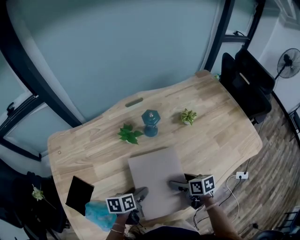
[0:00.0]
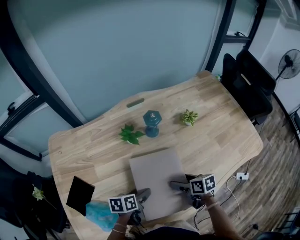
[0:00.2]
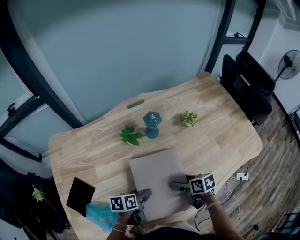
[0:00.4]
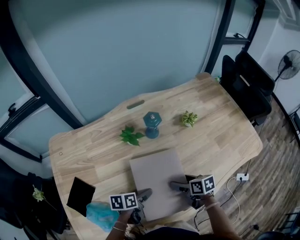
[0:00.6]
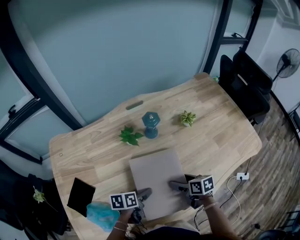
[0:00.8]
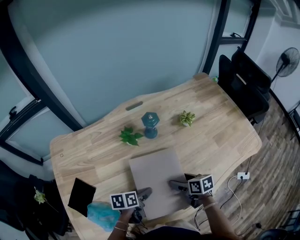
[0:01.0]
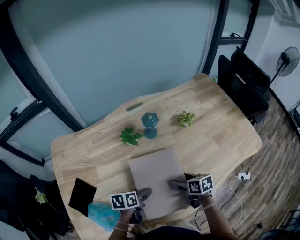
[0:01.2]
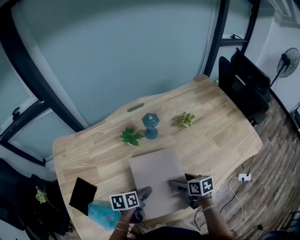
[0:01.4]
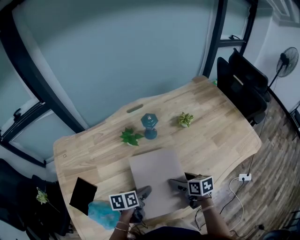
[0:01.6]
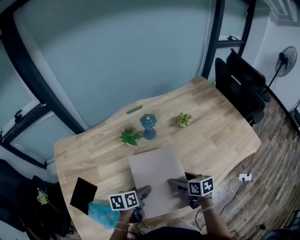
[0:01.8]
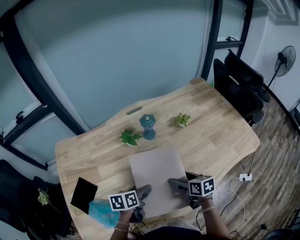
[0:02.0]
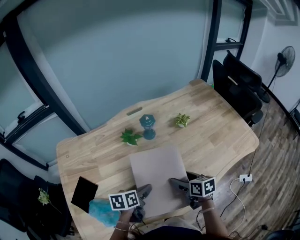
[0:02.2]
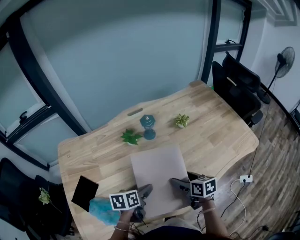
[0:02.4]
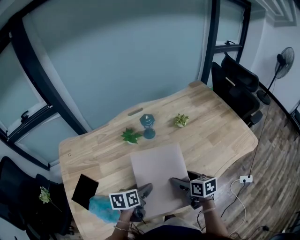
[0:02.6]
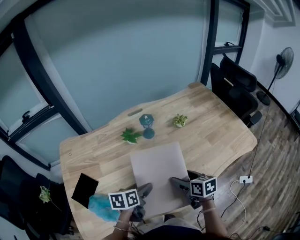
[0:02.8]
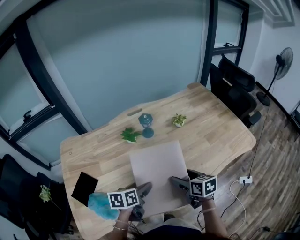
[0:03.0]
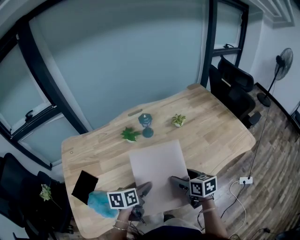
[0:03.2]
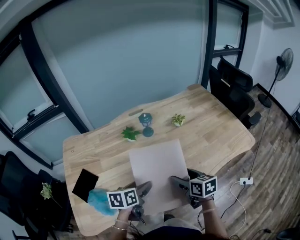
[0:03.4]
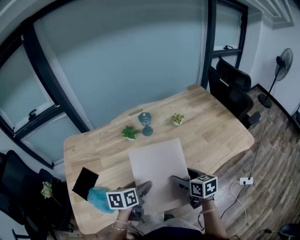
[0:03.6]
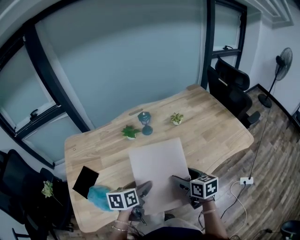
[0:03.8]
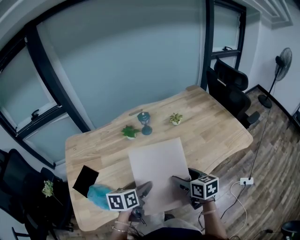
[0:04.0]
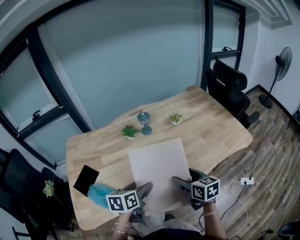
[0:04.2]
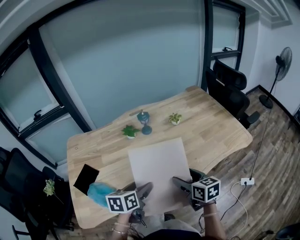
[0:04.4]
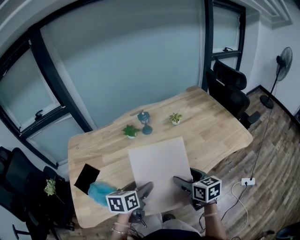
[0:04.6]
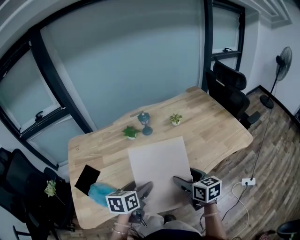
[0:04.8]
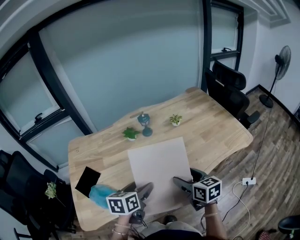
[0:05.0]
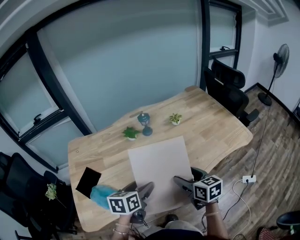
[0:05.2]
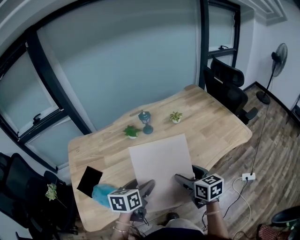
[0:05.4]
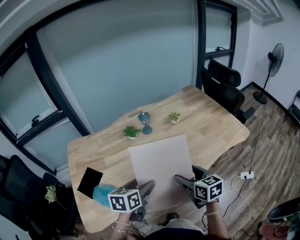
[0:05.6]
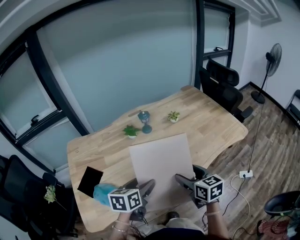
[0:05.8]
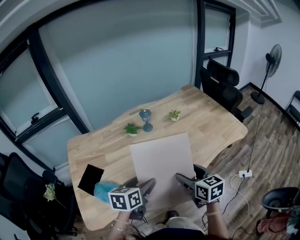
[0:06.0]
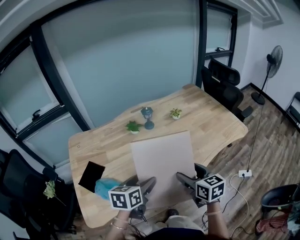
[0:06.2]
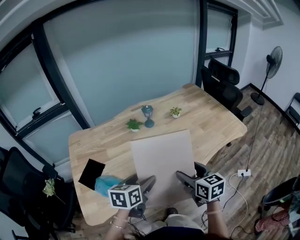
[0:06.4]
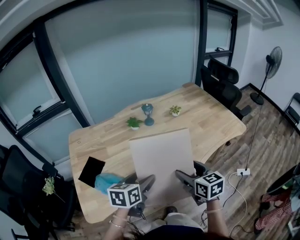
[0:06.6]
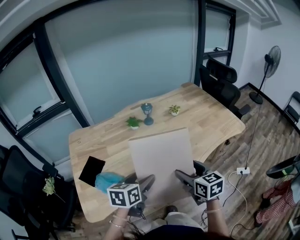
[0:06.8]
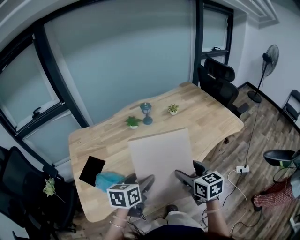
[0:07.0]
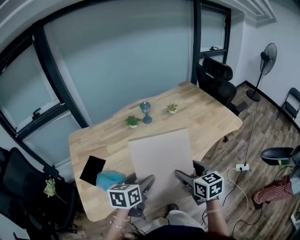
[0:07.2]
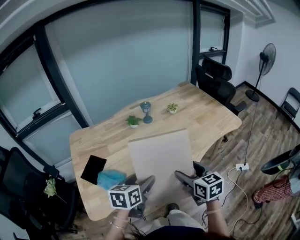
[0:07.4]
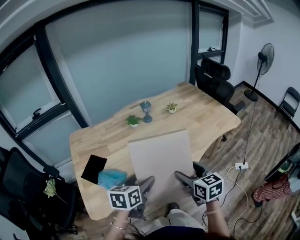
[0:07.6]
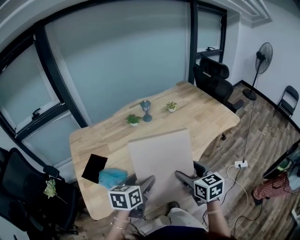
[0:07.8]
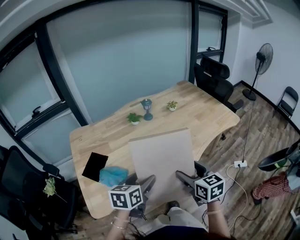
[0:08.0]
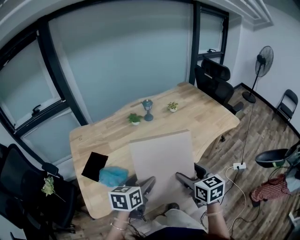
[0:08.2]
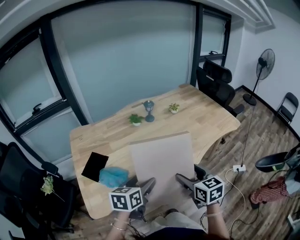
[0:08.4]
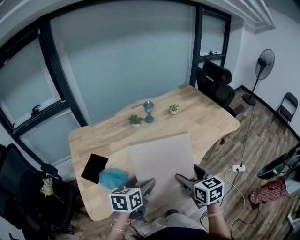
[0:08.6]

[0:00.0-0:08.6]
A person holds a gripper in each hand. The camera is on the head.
0:00.0 to 0:01.4: The grippers make only small movements.
0:01.4 to 0:02.8: The grippers both shift upward by some 10 cm.
0:02.8 to 0:04.4: Both grippers move backward and upward, approximately 10 cm.
0:04.4 to 0:05.8: The right gripper moves some 5 cm.
0:05.8 to 0:07.2: Both grippers travel together backward, some 10 cm.
0:07.2 to 0:08.6: The right gripper moves approximately 5 cm.

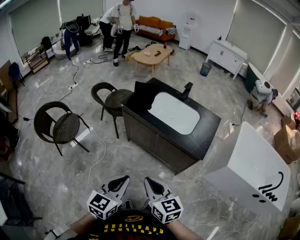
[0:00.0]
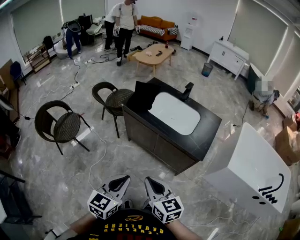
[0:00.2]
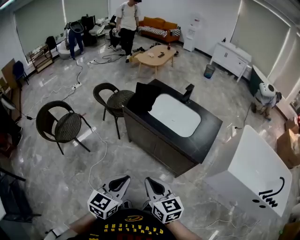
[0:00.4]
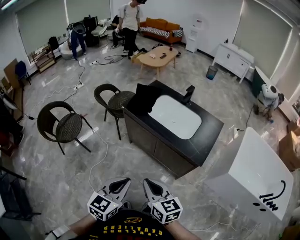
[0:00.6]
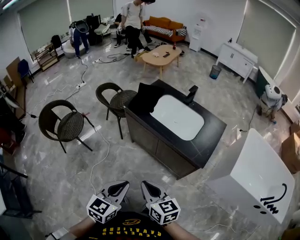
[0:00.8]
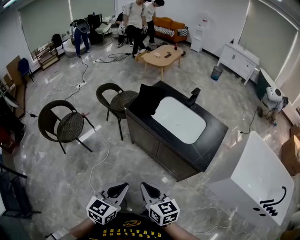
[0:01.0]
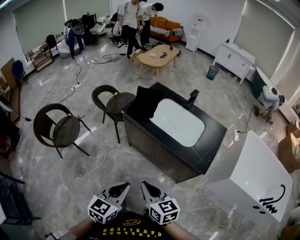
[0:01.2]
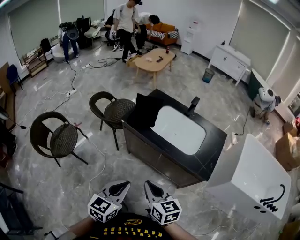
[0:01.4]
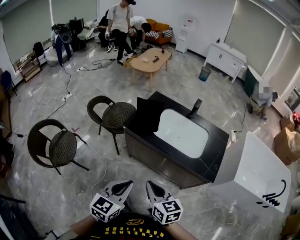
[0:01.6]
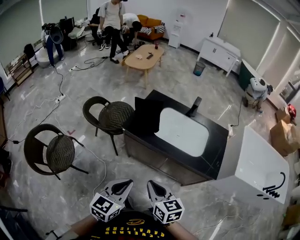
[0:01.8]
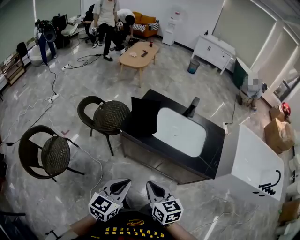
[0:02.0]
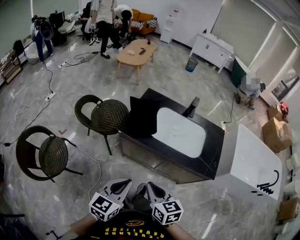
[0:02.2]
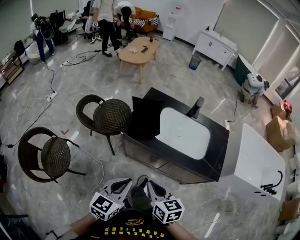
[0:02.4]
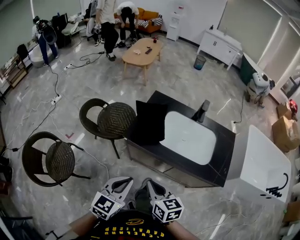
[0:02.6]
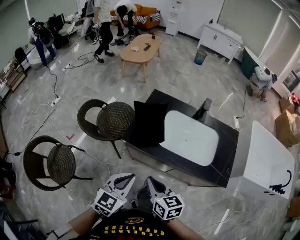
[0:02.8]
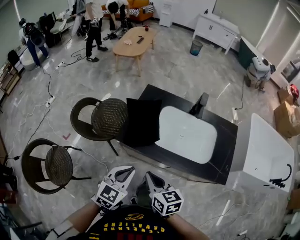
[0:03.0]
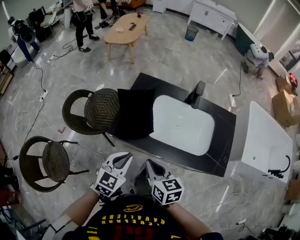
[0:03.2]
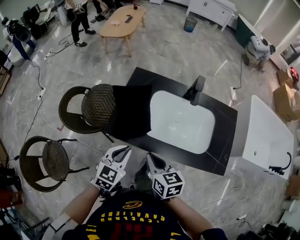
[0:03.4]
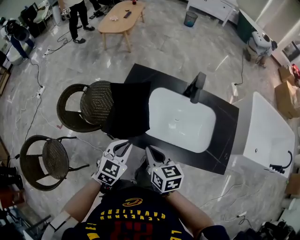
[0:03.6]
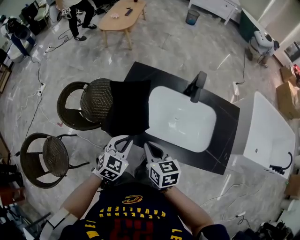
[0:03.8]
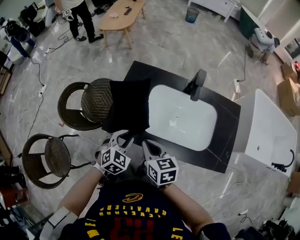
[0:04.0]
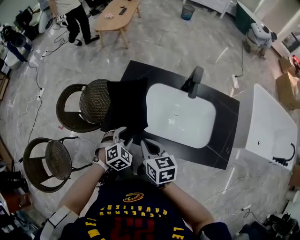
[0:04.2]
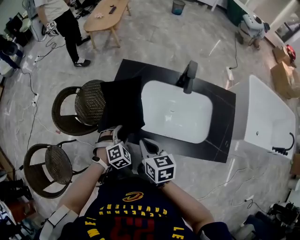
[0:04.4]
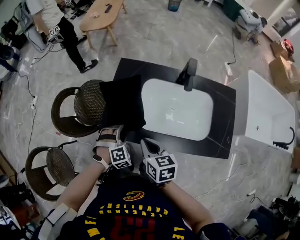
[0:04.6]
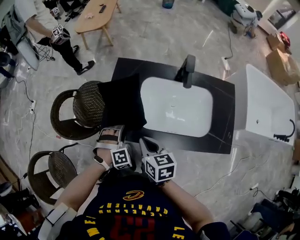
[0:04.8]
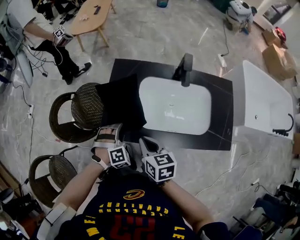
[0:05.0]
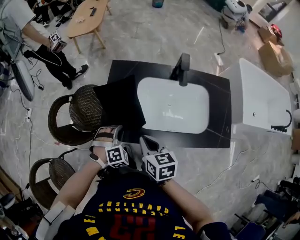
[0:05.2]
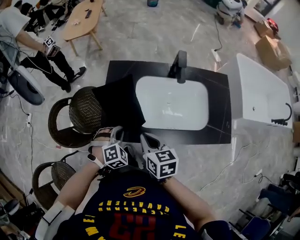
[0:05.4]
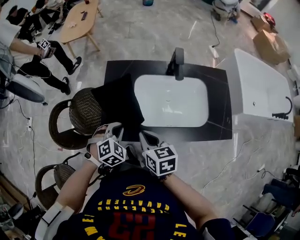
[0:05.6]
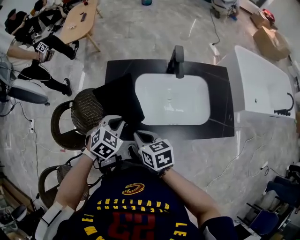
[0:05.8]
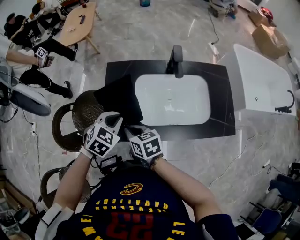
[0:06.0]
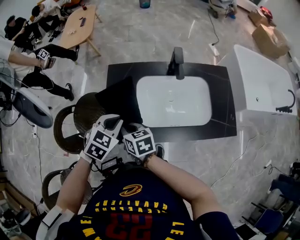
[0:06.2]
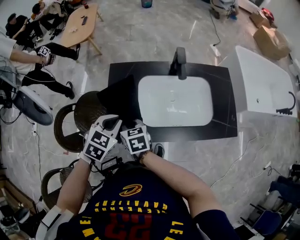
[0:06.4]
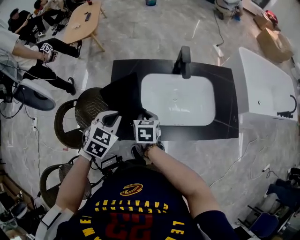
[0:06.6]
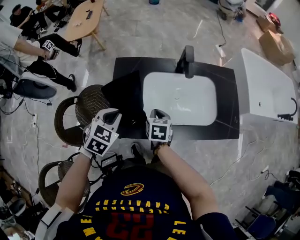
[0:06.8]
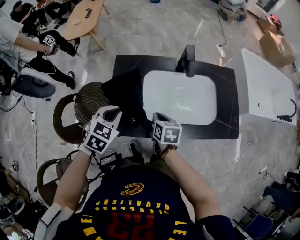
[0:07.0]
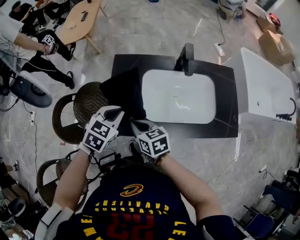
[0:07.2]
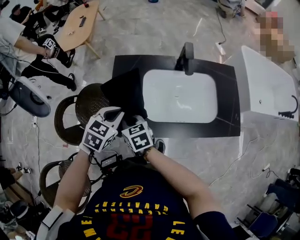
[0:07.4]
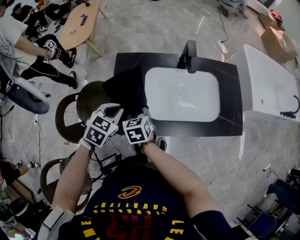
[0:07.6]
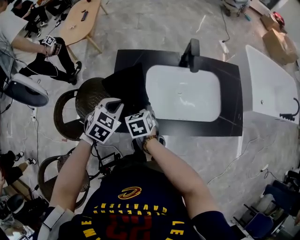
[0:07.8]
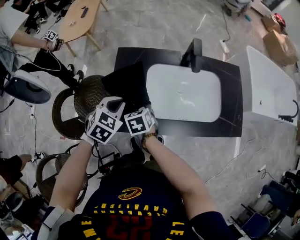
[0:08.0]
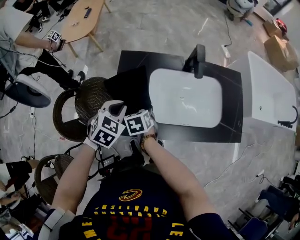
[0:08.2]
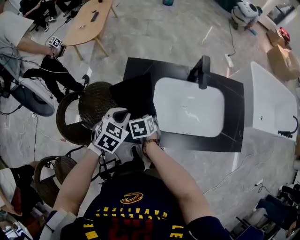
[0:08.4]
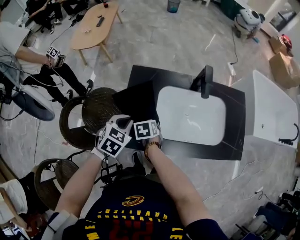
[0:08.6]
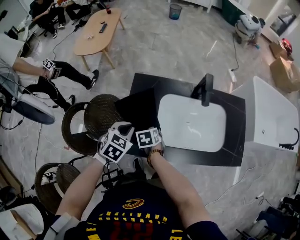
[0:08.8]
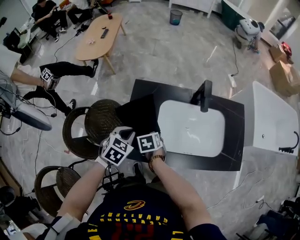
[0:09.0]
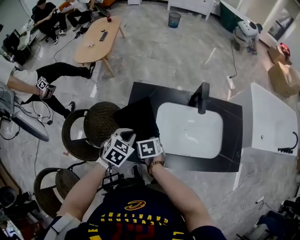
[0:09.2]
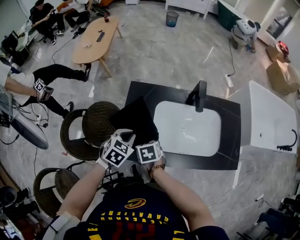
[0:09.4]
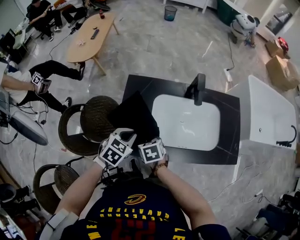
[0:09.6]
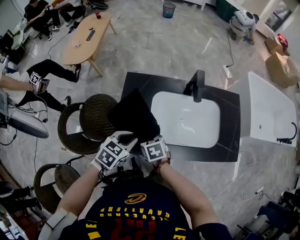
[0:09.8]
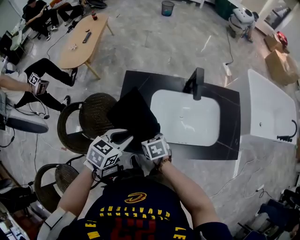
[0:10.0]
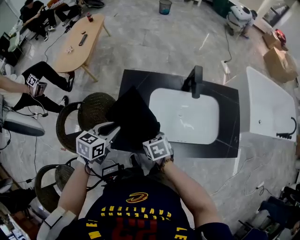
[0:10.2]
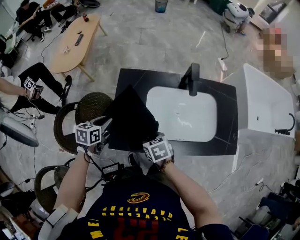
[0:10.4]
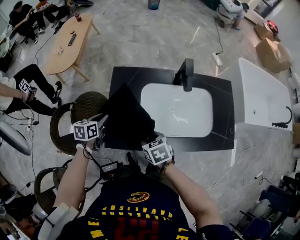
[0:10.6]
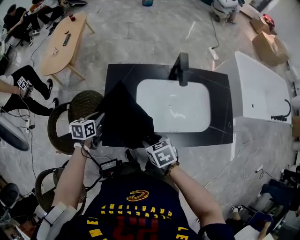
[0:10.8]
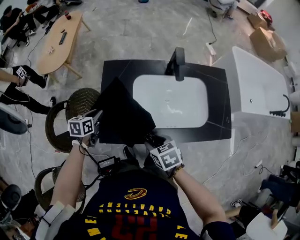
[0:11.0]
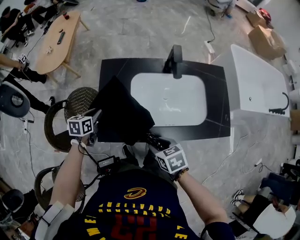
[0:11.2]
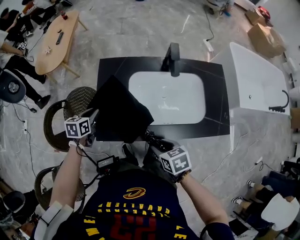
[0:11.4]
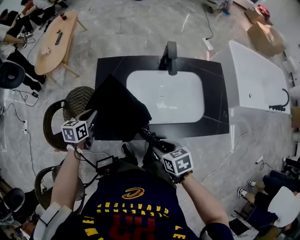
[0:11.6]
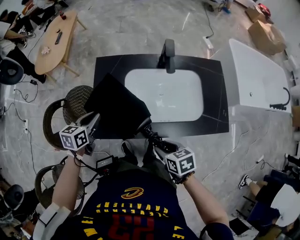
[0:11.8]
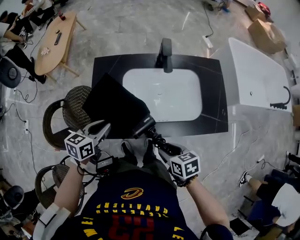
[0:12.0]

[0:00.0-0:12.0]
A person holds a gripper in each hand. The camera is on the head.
0:00.0 to 0:01.6: Both grippers travel together forward, approximately 20 cm.
0:01.6 to 0:03.0: Both grippers travel together forward, roughly 25 cm.
0:03.0 to 0:04.4: The right gripper travels forward and downward by approximately 15 cm. The left gripper is displaced downward and forward by about 25 cm, points its fingers some 30 degrees further downward, and opens up.
0:04.4 to 0:06.0: The right gripper goes about 10 cm to the left and forward, while the left gripper shifts roughly 15 cm upward and forward, turns by roughly 30 degrees, and closes.
0:06.0 to 0:07.6: The right gripper moves forward, approximately 5 cm, moves about 10 cm to the right and comes back, and turns by roughly 20 degrees.
0:07.6 to 0:09.0: The right gripper swivels approximately 20 degrees, and opens its fingers.
0:09.0 to 0:10.4: The left gripper travels to the left by roughly 5 cm, and swivels about 30 degrees. The right gripper heads to the right and backward, covering some 10 cm.
0:10.4 to 0:12.0: The right gripper goes some 20 cm backward and to the right, while the left gripper is displaced to the right, backward and upward by some 15 cm.

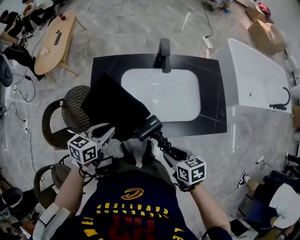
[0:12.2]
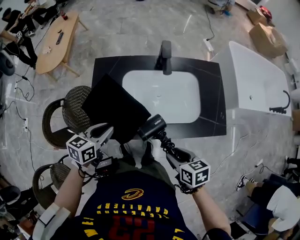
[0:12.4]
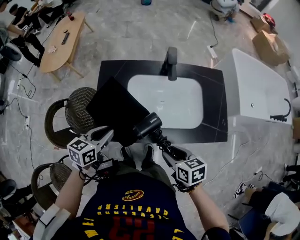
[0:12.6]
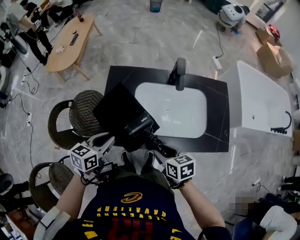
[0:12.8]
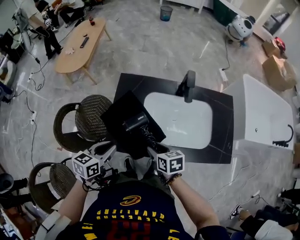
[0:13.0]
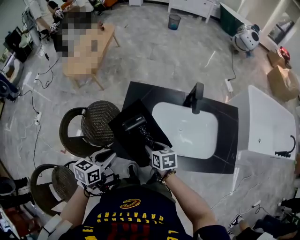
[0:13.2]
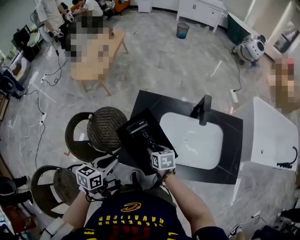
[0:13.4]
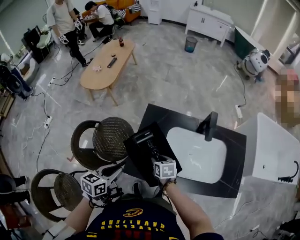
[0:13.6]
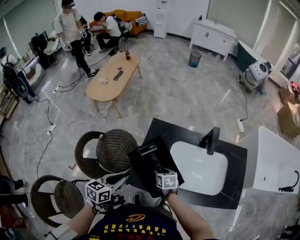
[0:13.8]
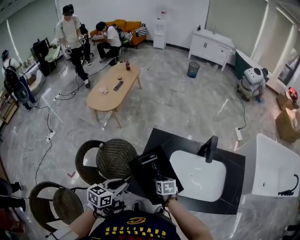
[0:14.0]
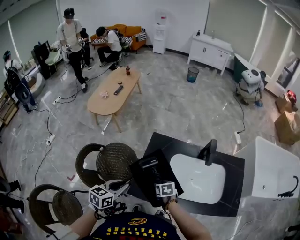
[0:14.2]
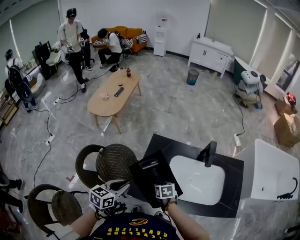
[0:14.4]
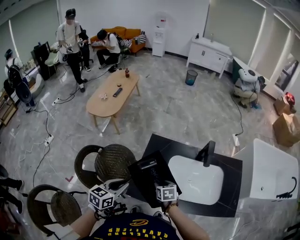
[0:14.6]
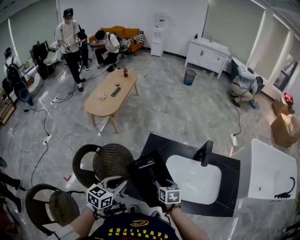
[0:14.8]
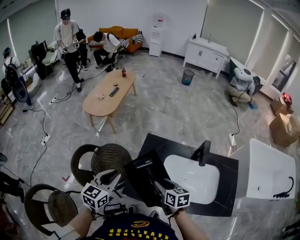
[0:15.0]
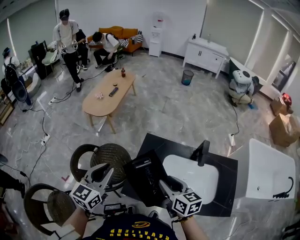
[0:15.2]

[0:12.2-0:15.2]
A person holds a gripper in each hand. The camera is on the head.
0:12.2 to 0:13.8: The right gripper shifts about 30 cm forward and to the left. Meanwhile the left gripper goes approximately 15 cm to the left, and swivels roughly 20 degrees.
0:13.8 to 0:15.2: Both grippers travel together upward, approximately 20 cm. The left gripper rotates about 30 degrees. Meanwhile the right gripper tilts its fingers about 30 degrees upward.
